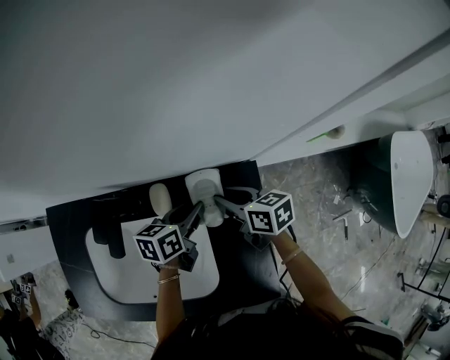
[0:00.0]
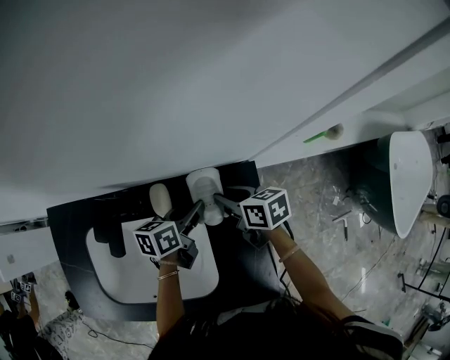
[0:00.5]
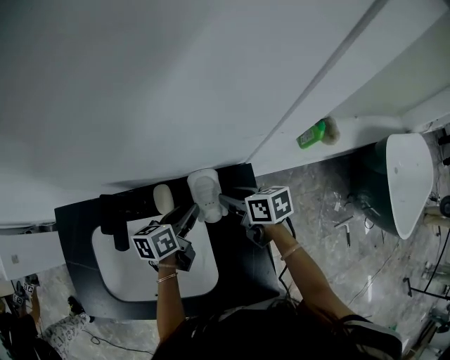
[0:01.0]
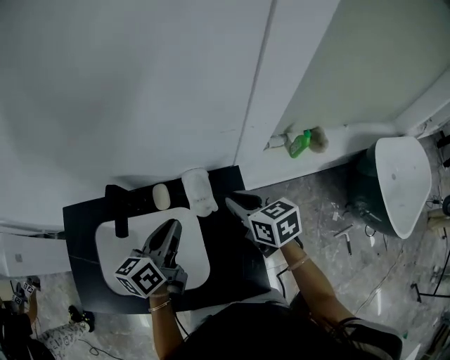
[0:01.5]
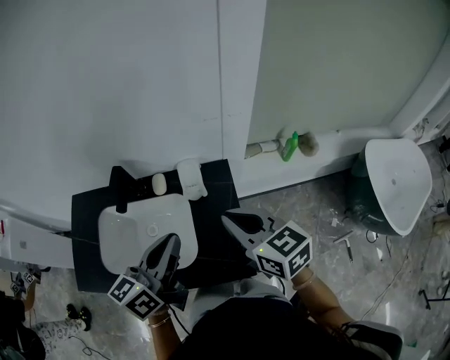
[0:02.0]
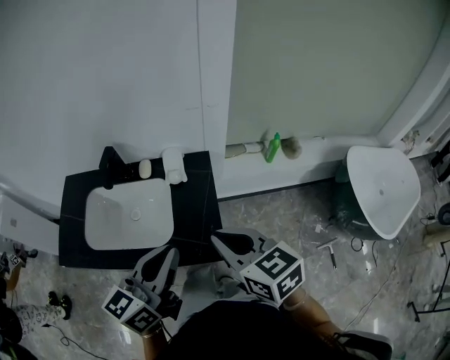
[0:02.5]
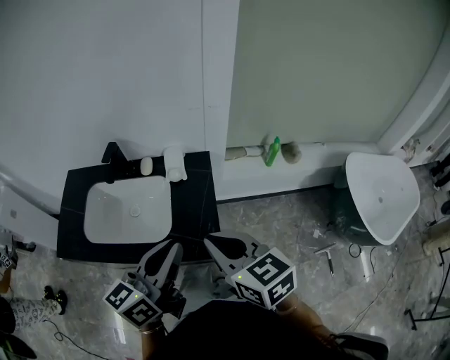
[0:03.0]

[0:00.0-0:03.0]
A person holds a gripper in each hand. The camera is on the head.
0:00.0 to 0:01.5: The left gripper is displaced upward and backward by approximately 20 cm, and turns by about 20 degrees. Meanwhile the right gripper travels upward, to the right and backward by about 15 cm.
0:01.5 to 0:03.0: The two grippers go approximately 35 cm backward and upward. The left gripper rotates approximately 20 degrees.

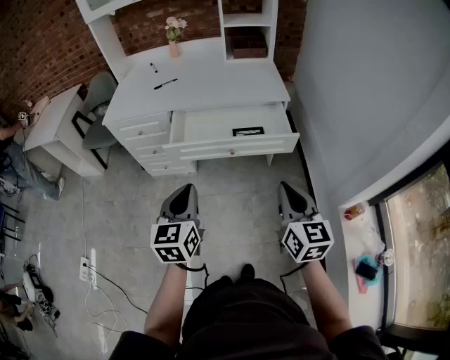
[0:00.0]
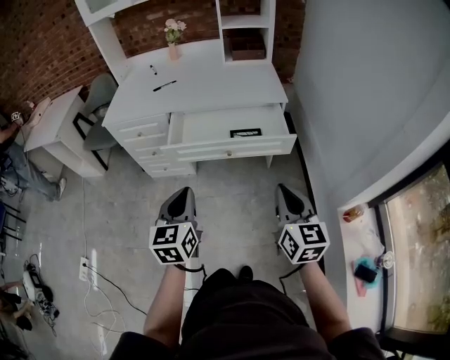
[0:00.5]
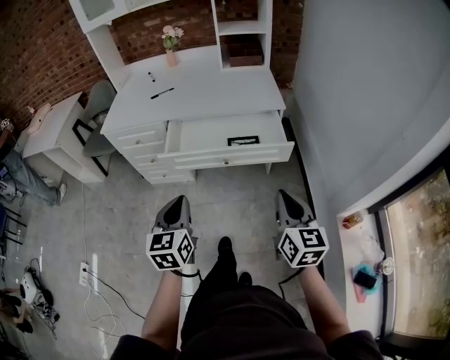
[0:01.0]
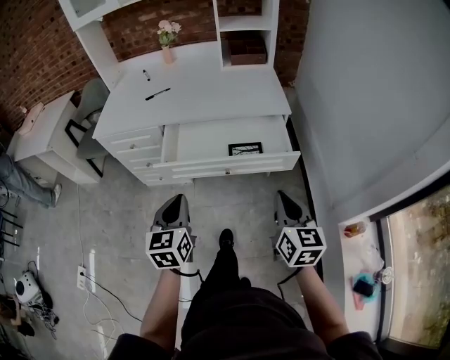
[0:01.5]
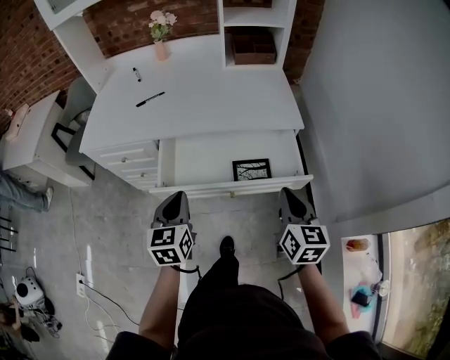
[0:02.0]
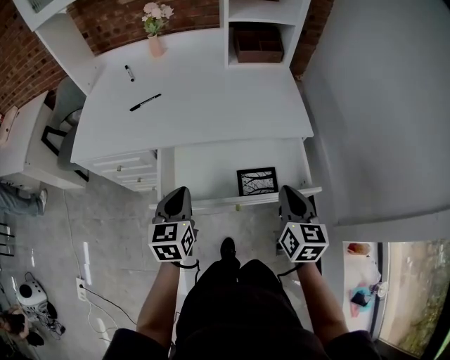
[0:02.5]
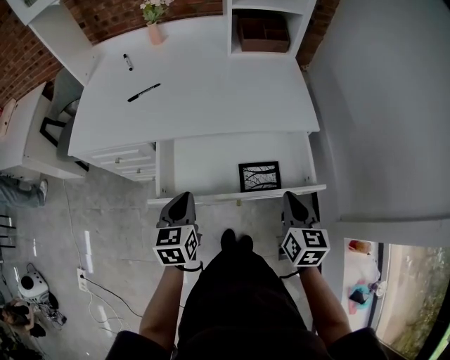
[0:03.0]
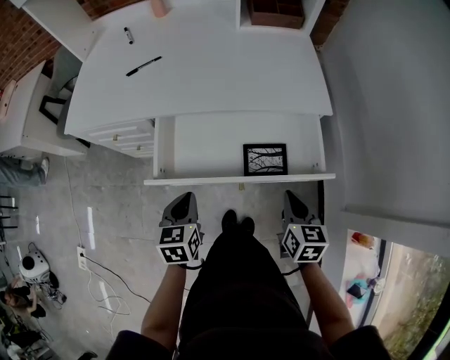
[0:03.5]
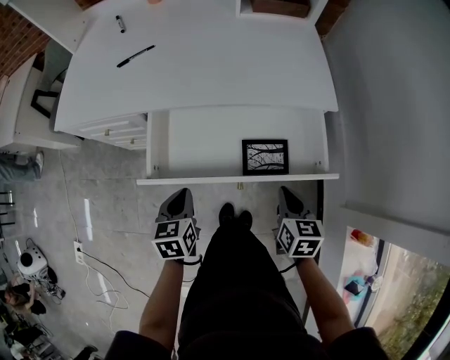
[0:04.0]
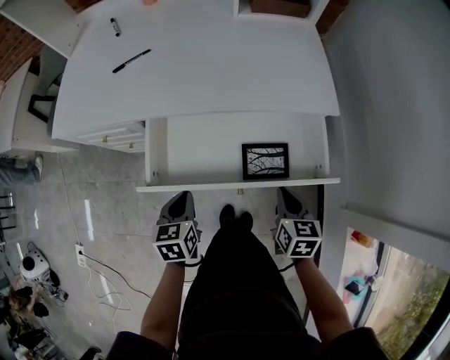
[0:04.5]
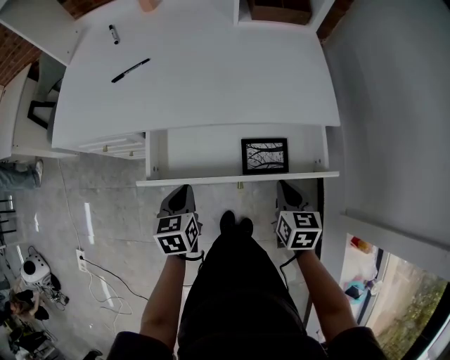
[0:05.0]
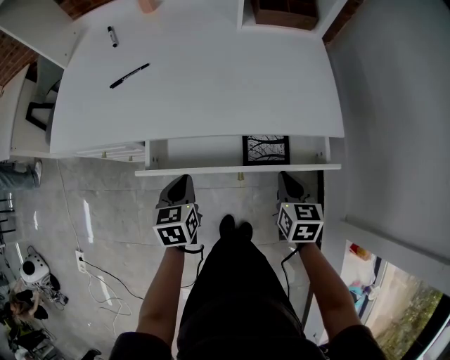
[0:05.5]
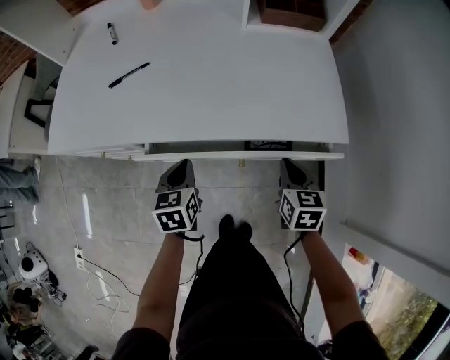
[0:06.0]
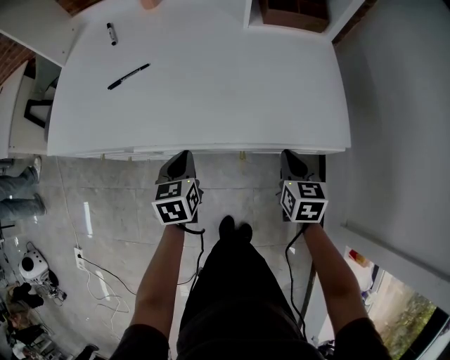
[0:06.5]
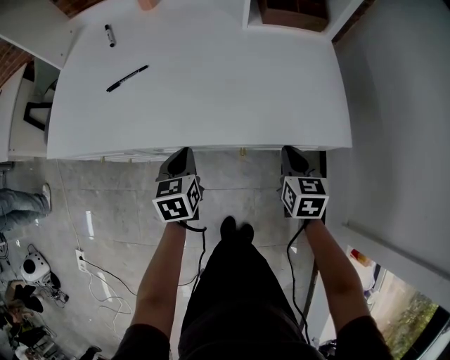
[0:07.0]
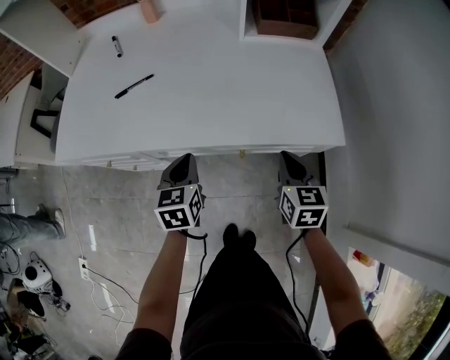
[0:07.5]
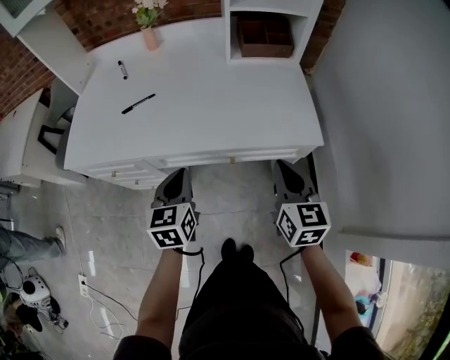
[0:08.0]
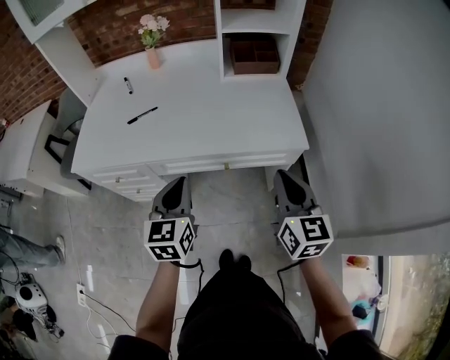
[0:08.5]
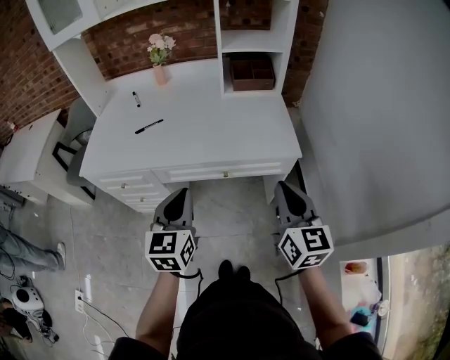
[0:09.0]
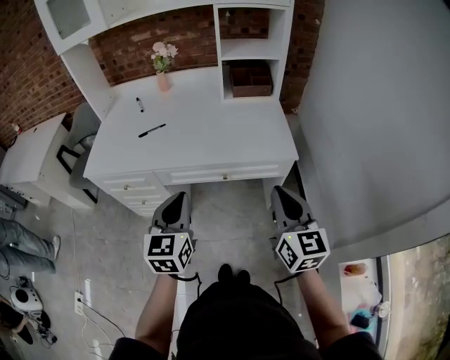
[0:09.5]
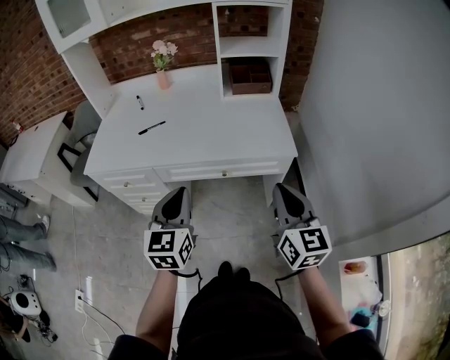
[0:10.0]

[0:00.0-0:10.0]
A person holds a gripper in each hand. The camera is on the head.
0:00.0 to 0:02.0: The grippers both shift forward by roughly 25 cm.
0:02.0 to 0:04.0: The two grippers go about 15 cm downward. The right gripper changes its angle by about 20 degrees; the left gripper changes its angle by about 20 degrees.
0:04.0 to 0:06.0: The two grippers go roughly 20 cm forward.
0:06.0 to 0:08.0: The grippers both shift upward by approximately 15 cm. The right gripper turns by about 20 degrees.
0:08.0 to 0:10.0: Both grippers travel together backward and upward, roughly 20 cm.

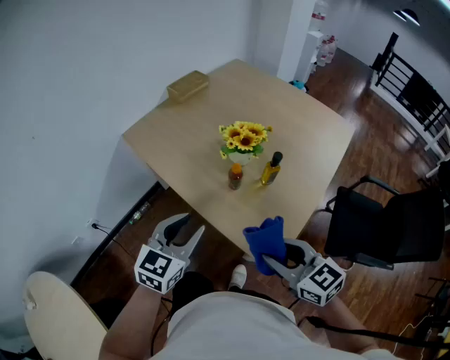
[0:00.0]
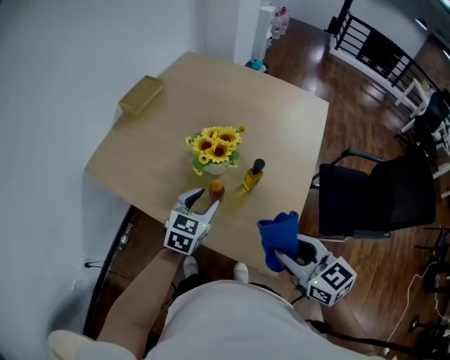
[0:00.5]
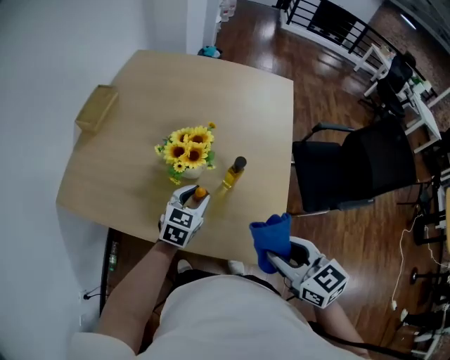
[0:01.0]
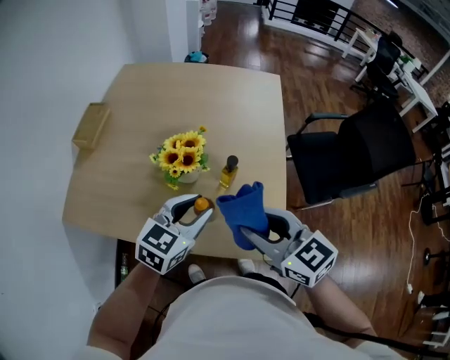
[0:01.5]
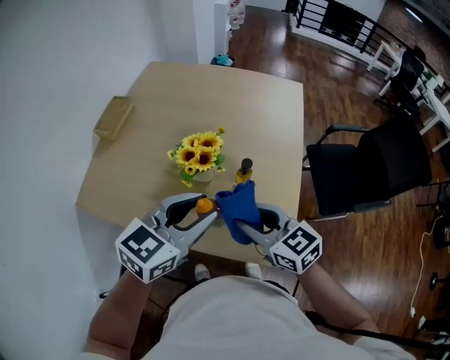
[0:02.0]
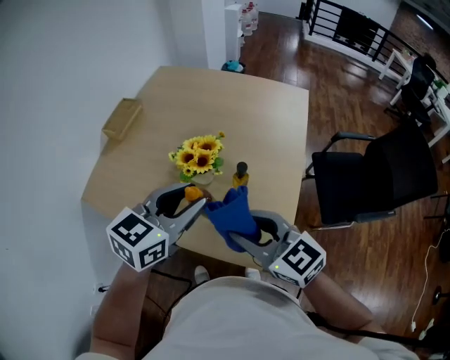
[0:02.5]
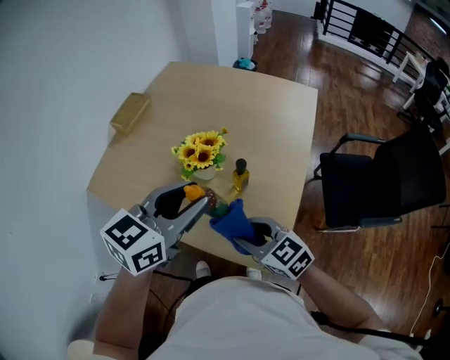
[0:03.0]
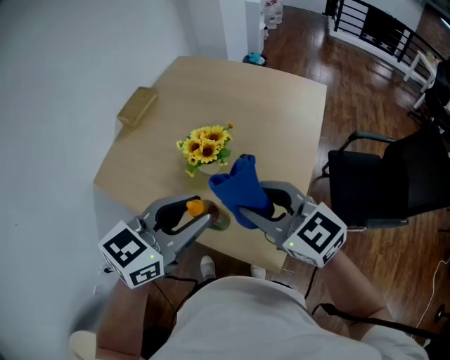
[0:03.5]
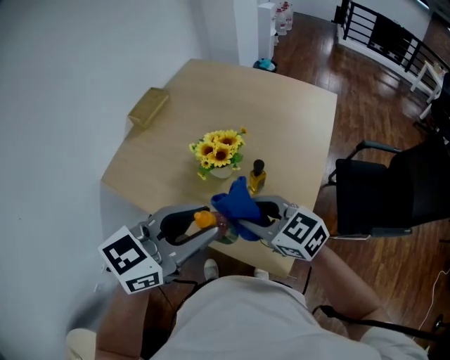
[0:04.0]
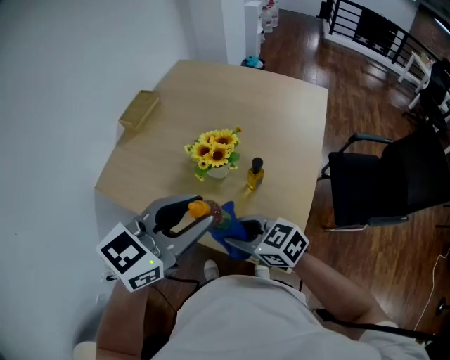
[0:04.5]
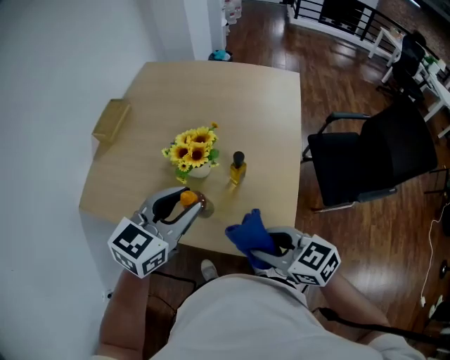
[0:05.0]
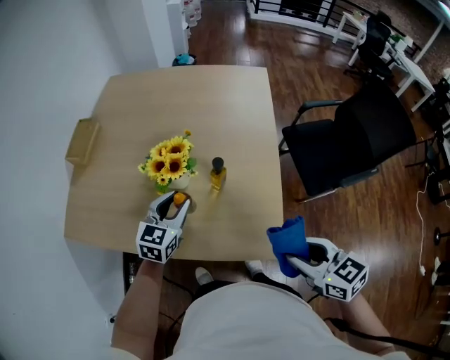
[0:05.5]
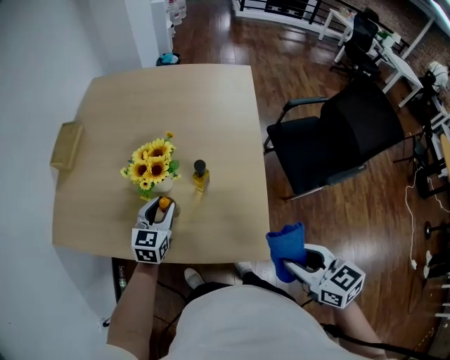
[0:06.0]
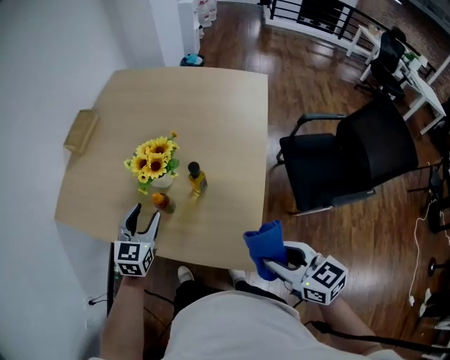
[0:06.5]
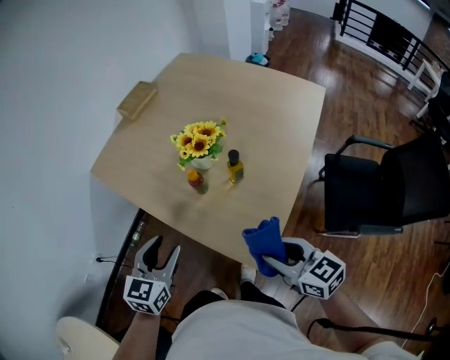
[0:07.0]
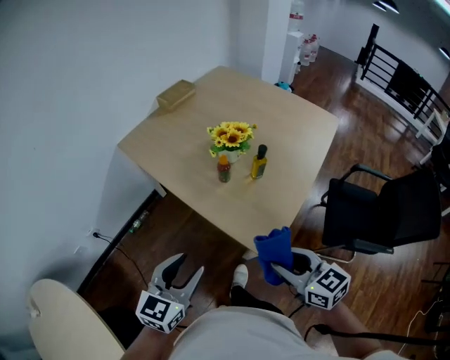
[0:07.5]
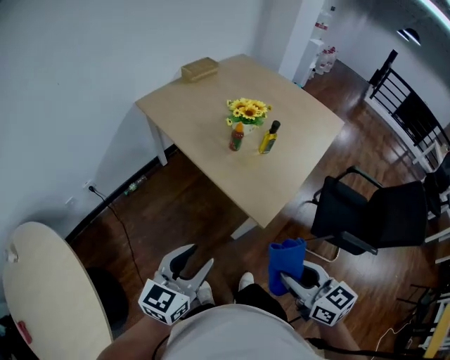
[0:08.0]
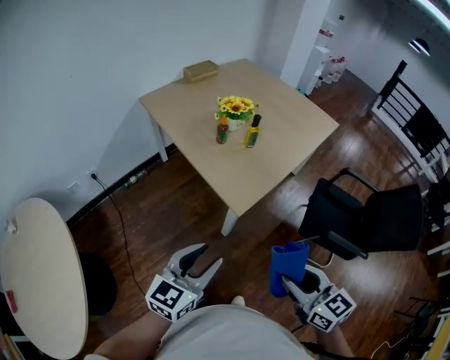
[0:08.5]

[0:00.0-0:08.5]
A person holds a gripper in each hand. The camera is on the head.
0:00.0 to 0:02.0: The left gripper goes downward and returns, roughly 15 cm each way, and swivels roughly 40 degrees. Meanwhile the right gripper ends up roughly 20 cm from where it was, and turns by roughly 20 degrees.
0:02.0 to 0:04.0: The left gripper is displaced backward and upward by some 10 cm. The right gripper goes up and down, roughly 15 cm each way, reversing 3 times, and rotates approximately 20 degrees.
0:04.0 to 0:06.5: The left gripper goes approximately 25 cm downward and forward, changes its angle by some 30 degrees, and opens, while the right gripper is displaced to the right and backward by roughly 20 cm, and turns by about 30 degrees.
0:06.5 to 0:08.5: The left gripper travels backward by approximately 50 cm, and rotates some 30 degrees; the right gripper heads backward, covering approximately 30 cm, and changes its angle by about 30 degrees.

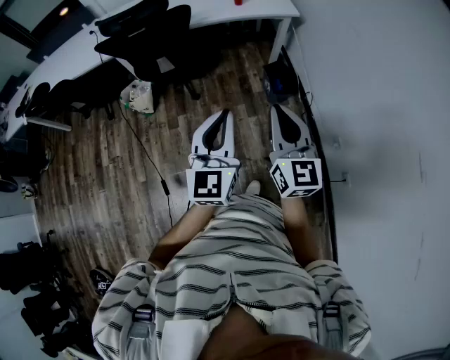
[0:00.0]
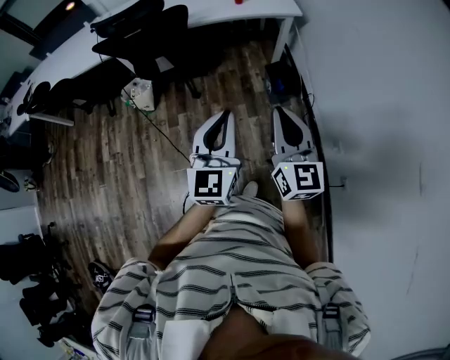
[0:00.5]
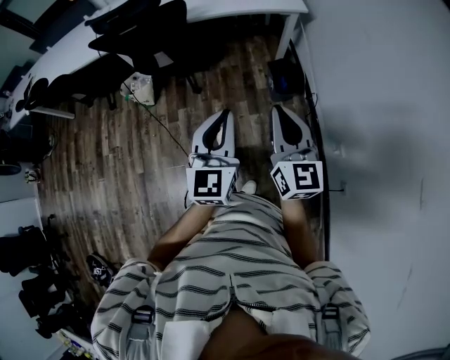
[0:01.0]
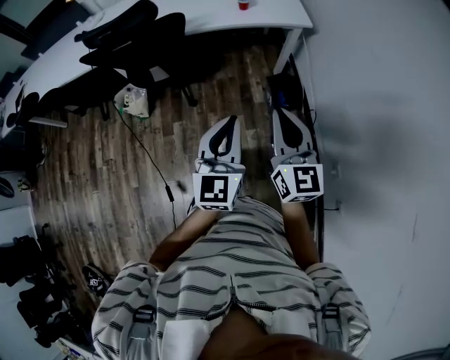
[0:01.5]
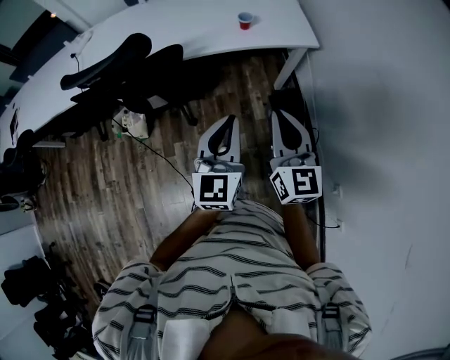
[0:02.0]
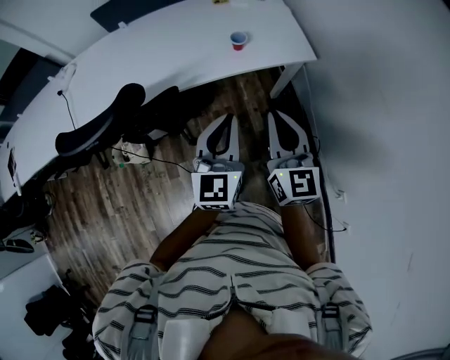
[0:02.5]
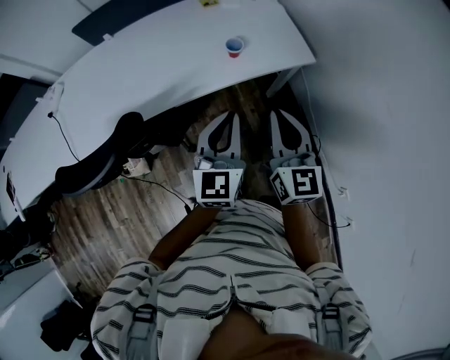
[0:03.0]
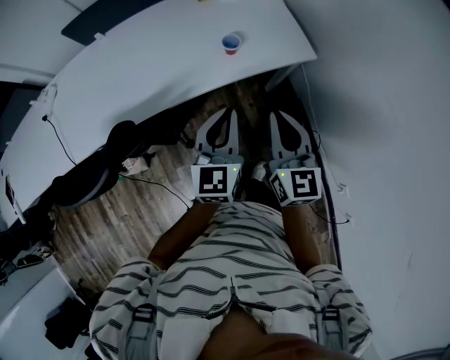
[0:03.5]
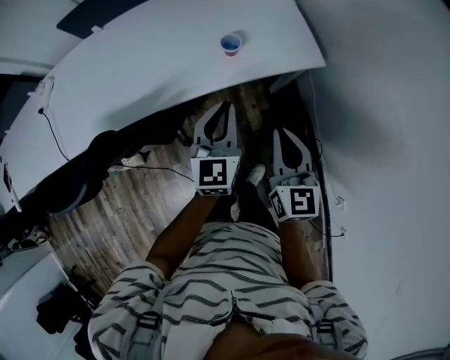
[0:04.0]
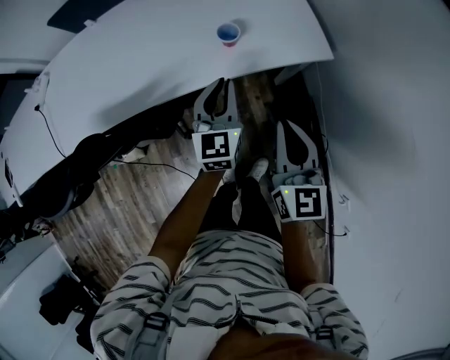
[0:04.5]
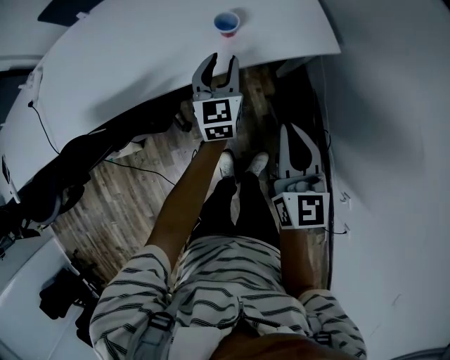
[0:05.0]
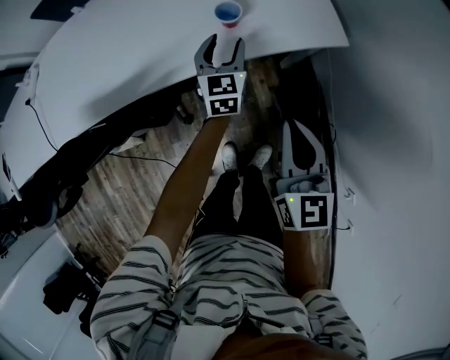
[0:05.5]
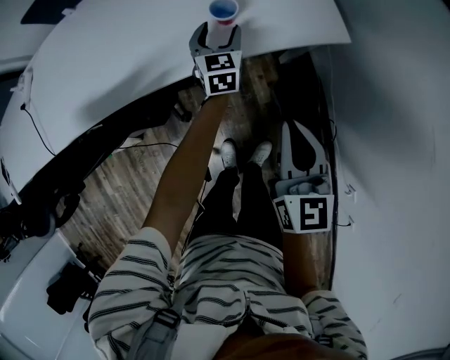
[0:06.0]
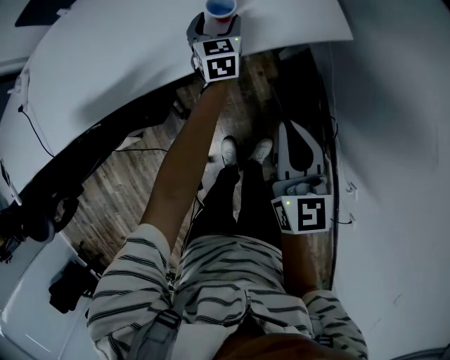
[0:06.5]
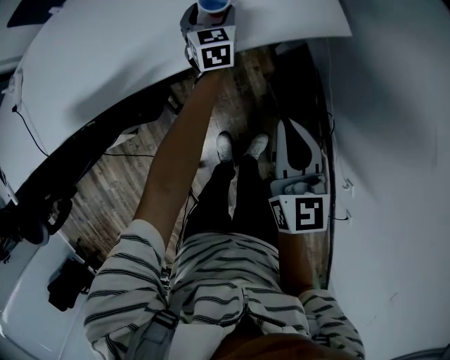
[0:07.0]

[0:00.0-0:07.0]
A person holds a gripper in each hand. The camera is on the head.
0:00.0 to 0:02.0: The two grippers go roughly 35 cm forward.
0:02.0 to 0:03.5: The two grippers go roughly 25 cm forward.
0:03.5 to 0:05.0: The left gripper goes about 25 cm forward and downward, and opens; the right gripper heads downward and to the right, covering about 10 cm.
0:05.0 to 0:07.0: The left gripper travels forward and downward by some 20 cm, and opens. Meanwhile the right gripper shifts by roughly 5 cm.
